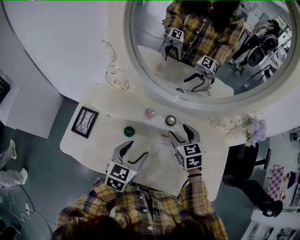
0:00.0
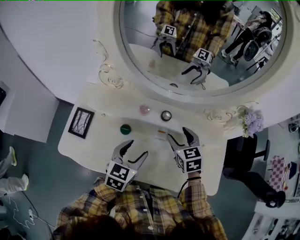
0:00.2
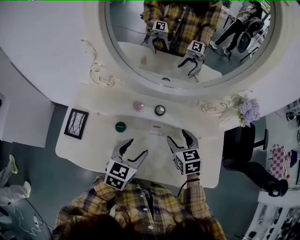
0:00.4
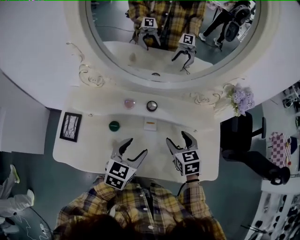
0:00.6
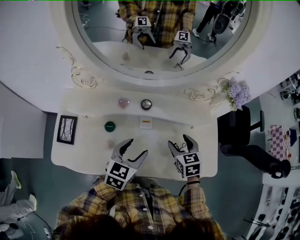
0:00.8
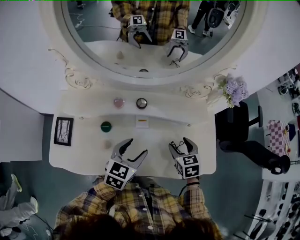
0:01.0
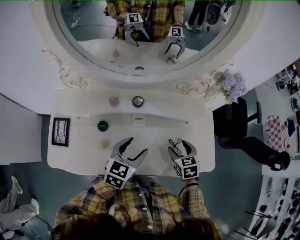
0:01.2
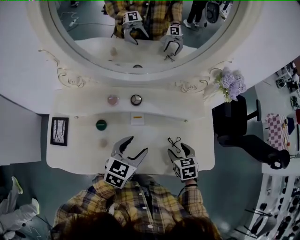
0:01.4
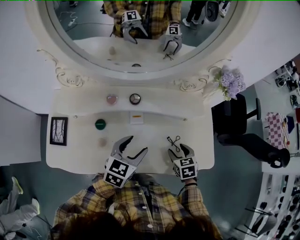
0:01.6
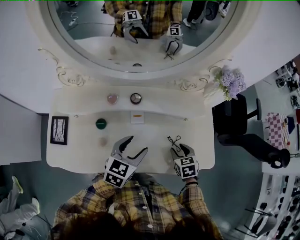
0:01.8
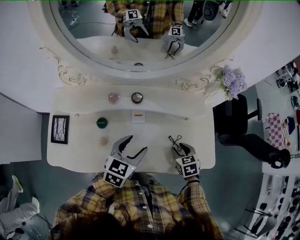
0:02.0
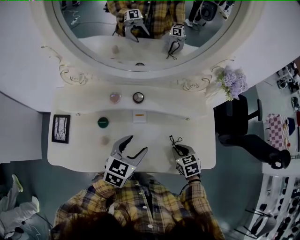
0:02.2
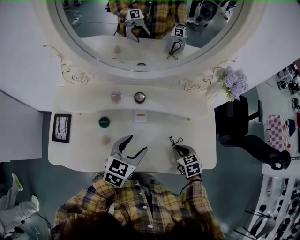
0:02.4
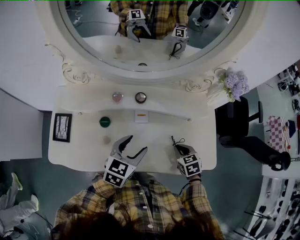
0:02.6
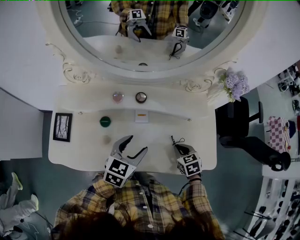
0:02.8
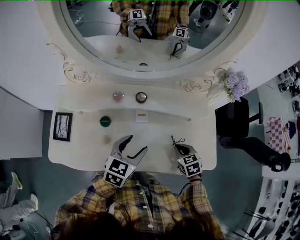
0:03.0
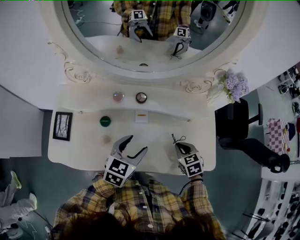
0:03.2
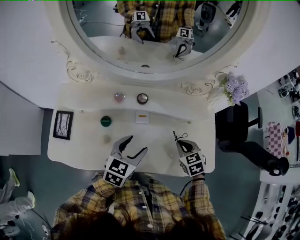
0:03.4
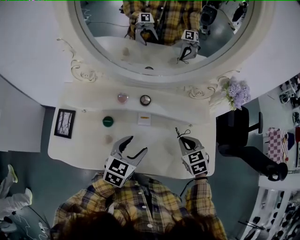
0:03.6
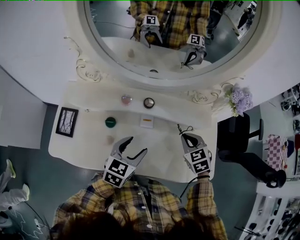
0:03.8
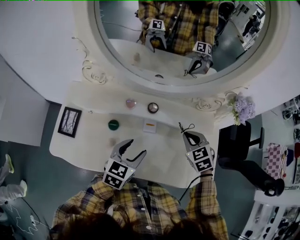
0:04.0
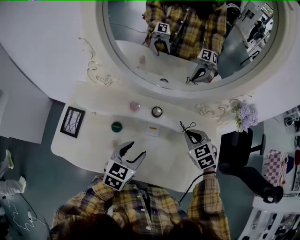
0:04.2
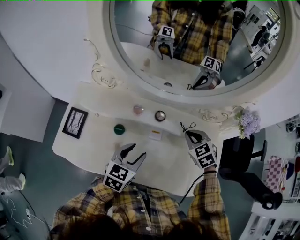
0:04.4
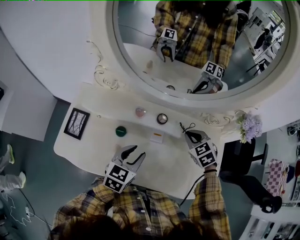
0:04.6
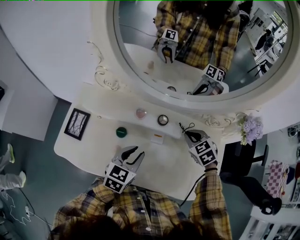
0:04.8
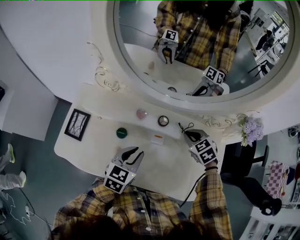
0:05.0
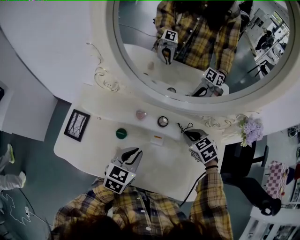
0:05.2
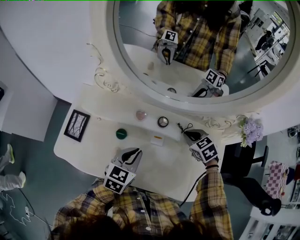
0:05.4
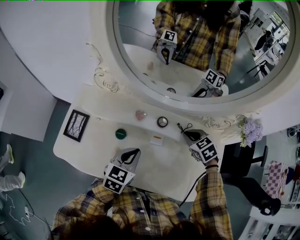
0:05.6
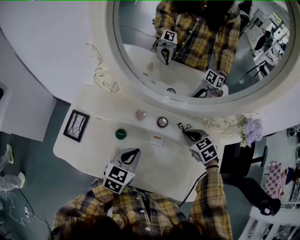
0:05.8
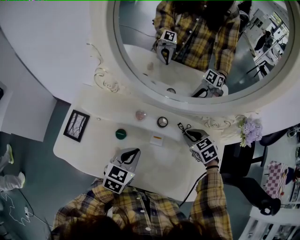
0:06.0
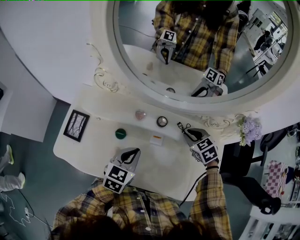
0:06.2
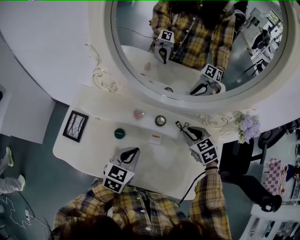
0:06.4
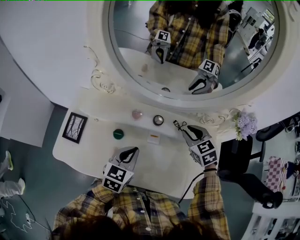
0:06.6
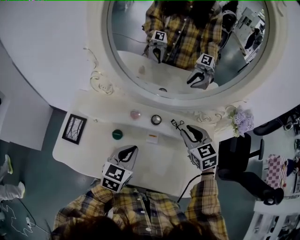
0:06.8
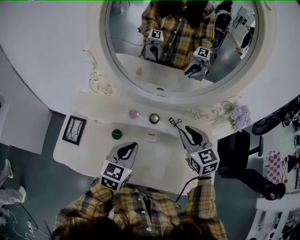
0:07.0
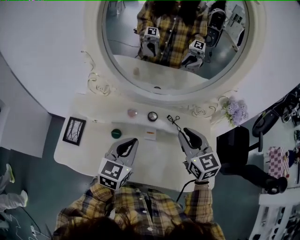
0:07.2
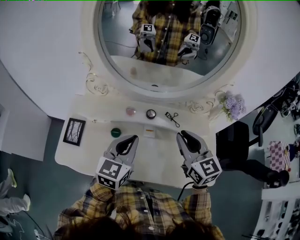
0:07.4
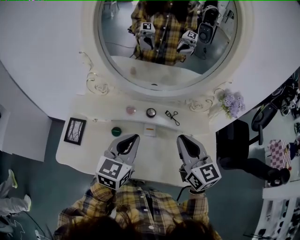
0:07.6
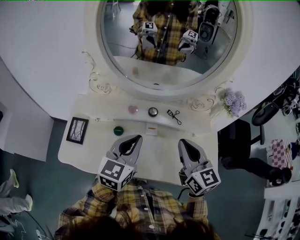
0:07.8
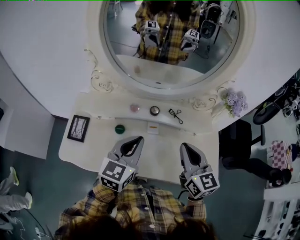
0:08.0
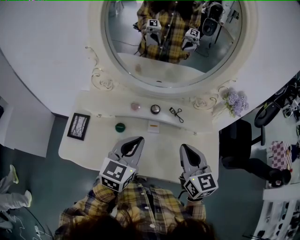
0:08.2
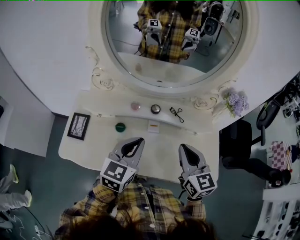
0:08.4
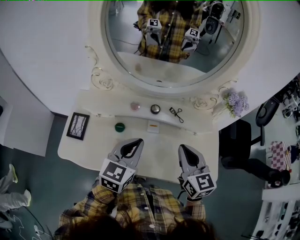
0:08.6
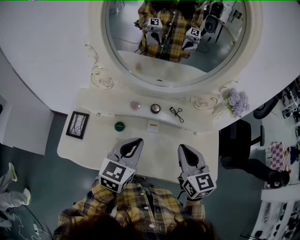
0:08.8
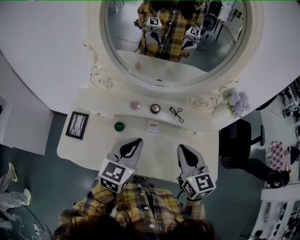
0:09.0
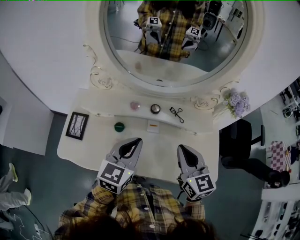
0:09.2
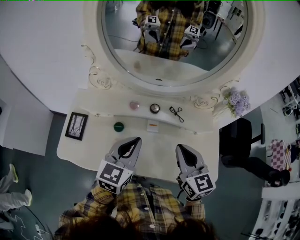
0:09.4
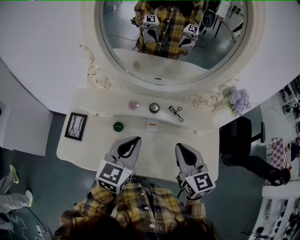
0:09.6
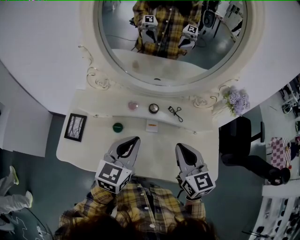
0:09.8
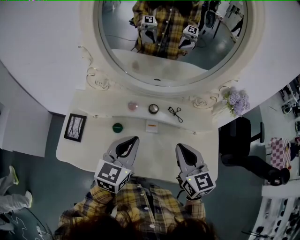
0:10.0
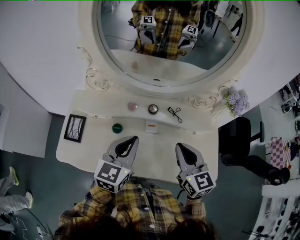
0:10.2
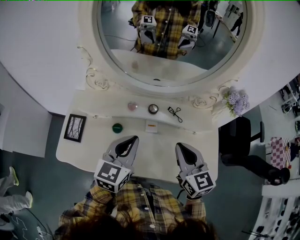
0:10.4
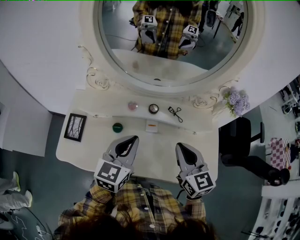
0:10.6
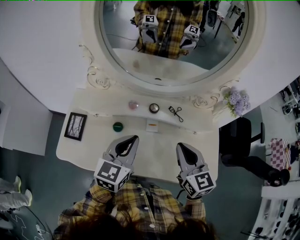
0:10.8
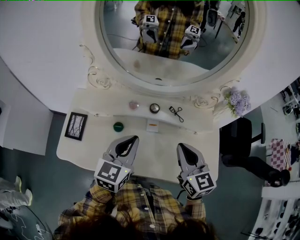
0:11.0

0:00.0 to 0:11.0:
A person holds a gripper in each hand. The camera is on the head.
0:00.0 to 0:01.6: The right gripper is displaced to the right, backward and downward by some 30 cm, and turns by approximately 30 degrees. The left gripper is displaced to the right by about 10 cm, and swivels some 20 degrees.
0:01.6 to 0:03.2: The right gripper closes up.
0:03.2 to 0:04.8: The right gripper goes some 20 cm forward, to the left and upward, and changes its angle by about 30 degrees, while the left gripper moves to the left, approximately 5 cm, and closes up.
0:04.8 to 0:06.2: The left gripper closes its fingers.
0:06.2 to 0:07.8: The right gripper shifts roughly 25 cm upward and backward, and tilts its fingers some 50 degrees upward, while the left gripper goes roughly 15 cm upward.
0:07.8 to 0:09.4: The grippers stay close to where they were, moving slightly.
0:09.4 to 0:11.0: Both grippers stay put.

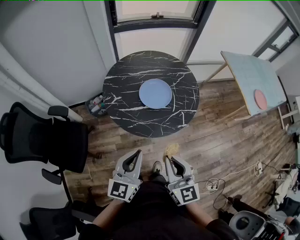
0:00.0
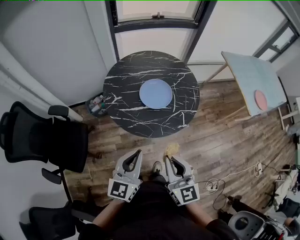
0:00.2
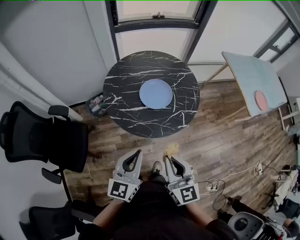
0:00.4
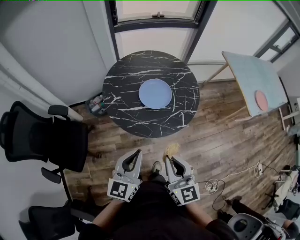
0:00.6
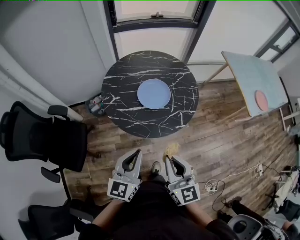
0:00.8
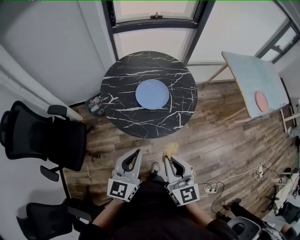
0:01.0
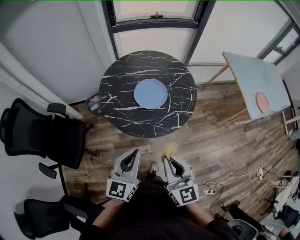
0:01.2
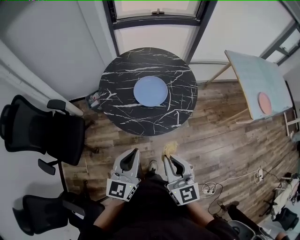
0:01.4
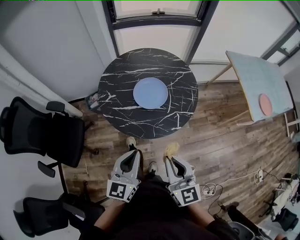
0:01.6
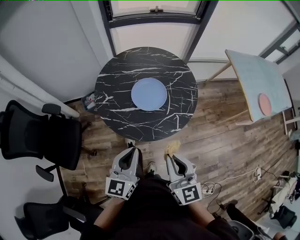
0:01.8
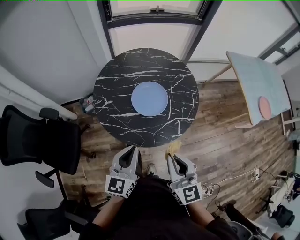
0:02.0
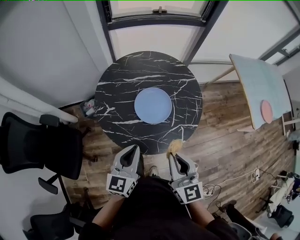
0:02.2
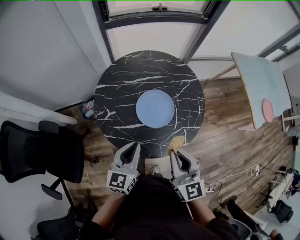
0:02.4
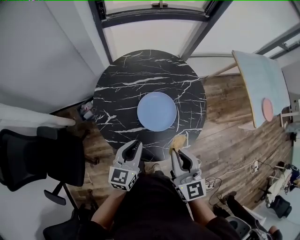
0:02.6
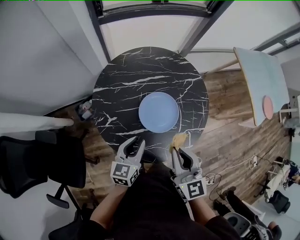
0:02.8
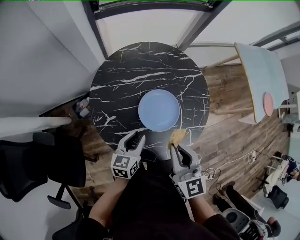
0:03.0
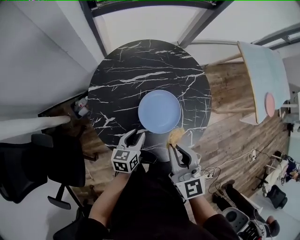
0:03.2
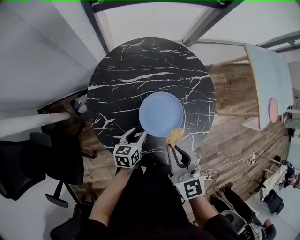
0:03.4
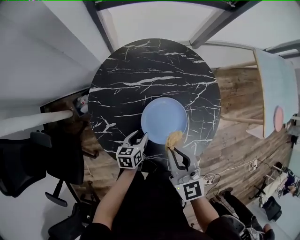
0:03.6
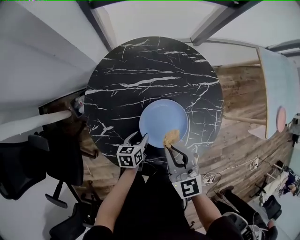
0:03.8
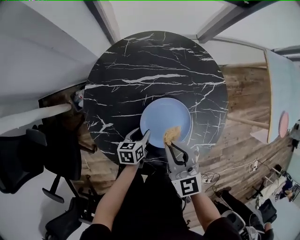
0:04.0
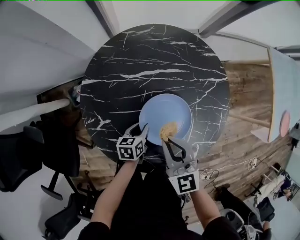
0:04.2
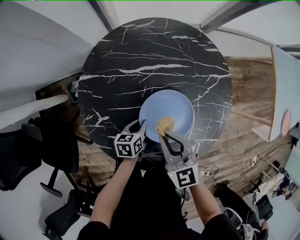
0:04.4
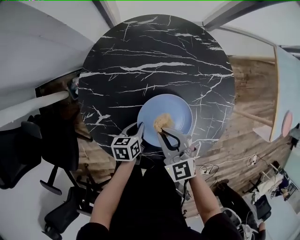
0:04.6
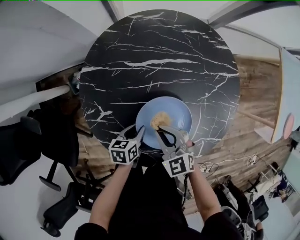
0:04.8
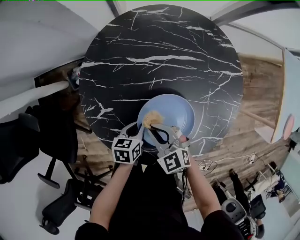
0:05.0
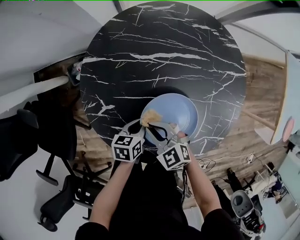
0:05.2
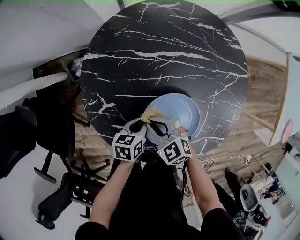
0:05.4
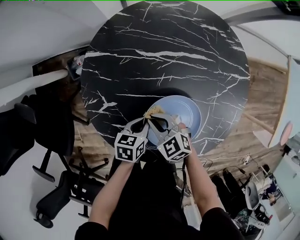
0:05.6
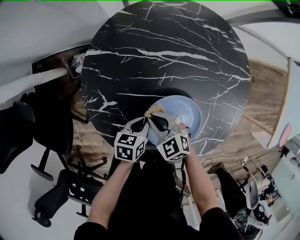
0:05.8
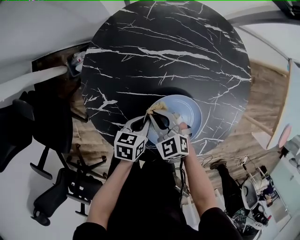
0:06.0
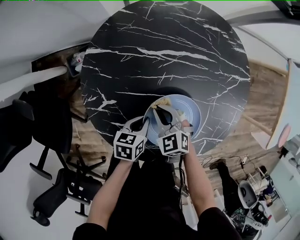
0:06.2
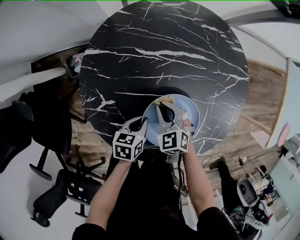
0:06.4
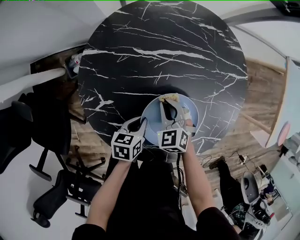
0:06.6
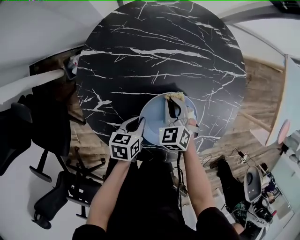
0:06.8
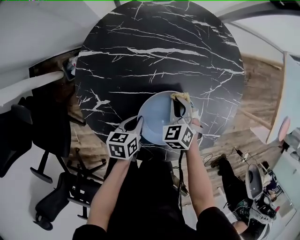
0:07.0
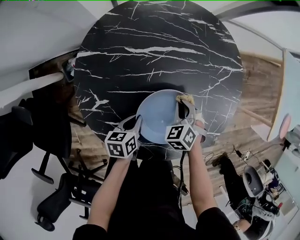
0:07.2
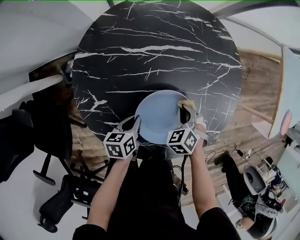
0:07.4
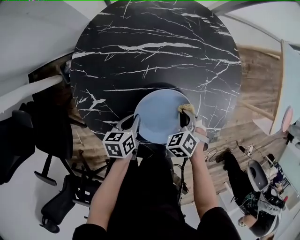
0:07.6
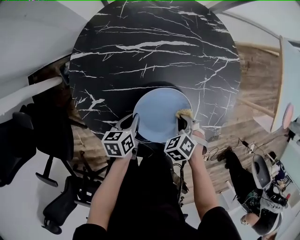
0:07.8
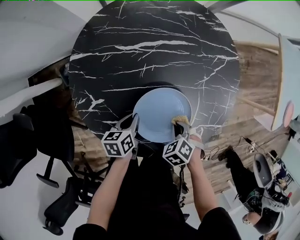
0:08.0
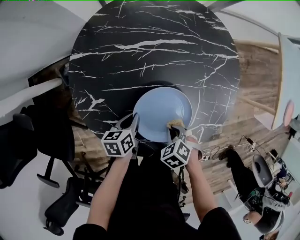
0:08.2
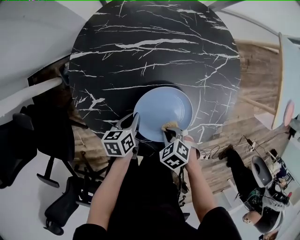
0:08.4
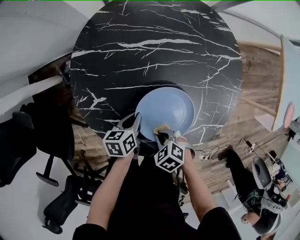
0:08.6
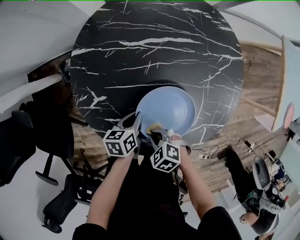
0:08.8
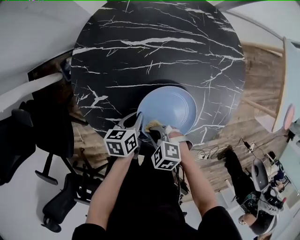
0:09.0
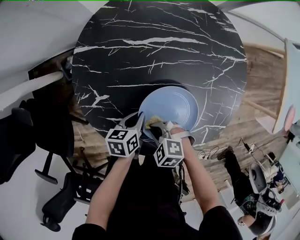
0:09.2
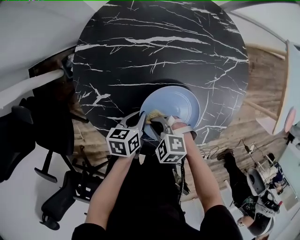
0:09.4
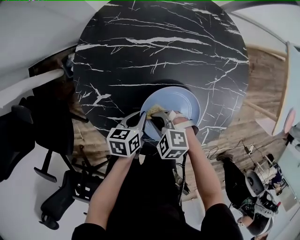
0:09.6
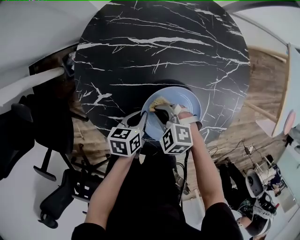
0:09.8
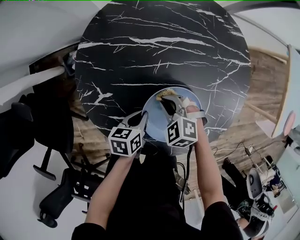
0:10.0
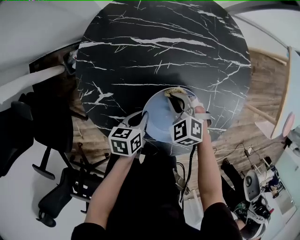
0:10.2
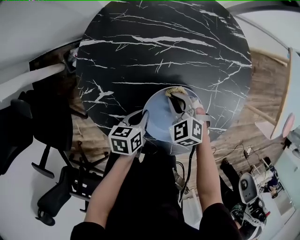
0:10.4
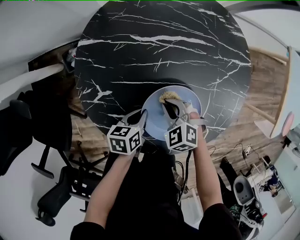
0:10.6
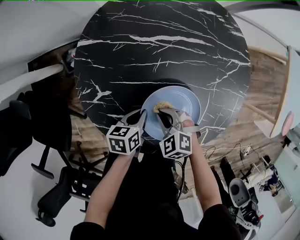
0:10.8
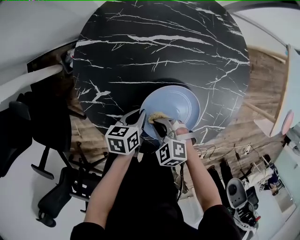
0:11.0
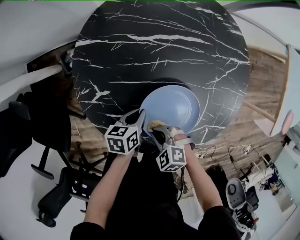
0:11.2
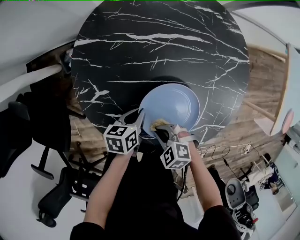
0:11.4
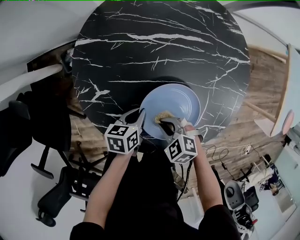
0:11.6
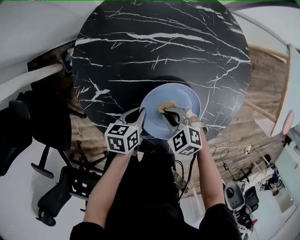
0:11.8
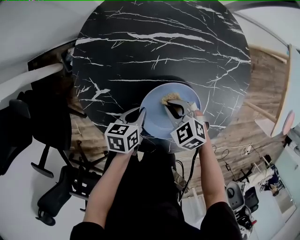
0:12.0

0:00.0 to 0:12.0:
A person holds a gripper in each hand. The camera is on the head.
0:00.0 to 0:01.6: The grippers both shift to the right by some 10 cm.
0:01.6 to 0:03.0: The left gripper heads forward and downward, covering some 35 cm, rotates roughly 30 degrees, and opens up. The right gripper moves forward, about 30 cm.
0:03.0 to 0:04.4: The left gripper heads downward, covering roughly 20 cm, and turns by some 30 degrees; the right gripper travels downward and forward by about 20 cm, and changes its angle by approximately 20 degrees.
0:04.4 to 0:06.0: The right gripper goes some 20 cm downward and to the left, and swivels approximately 30 degrees.
0:06.0 to 0:07.6: The right gripper changes place by approximately 20 cm, and turns by about 40 degrees.
0:07.6 to 0:09.0: The right gripper changes place by roughly 20 cm, and changes its angle by roughly 40 degrees.
0:09.0 to 0:10.4: The right gripper shifts by some 15 cm, and swivels some 20 degrees.

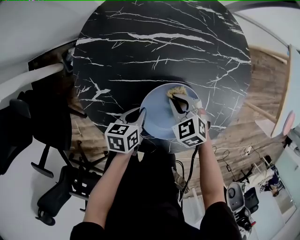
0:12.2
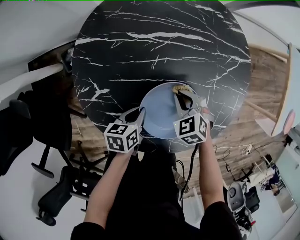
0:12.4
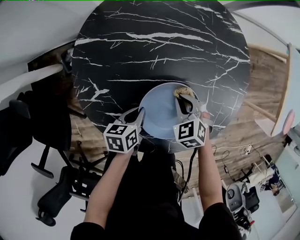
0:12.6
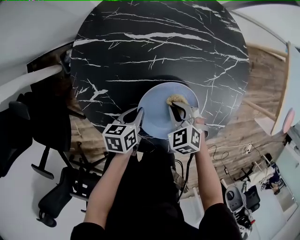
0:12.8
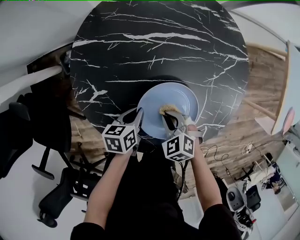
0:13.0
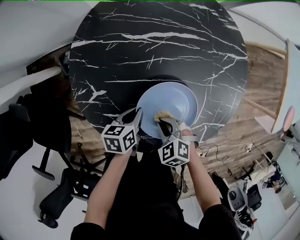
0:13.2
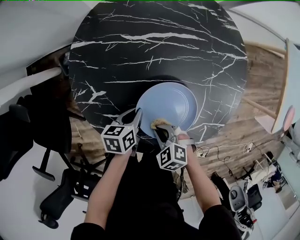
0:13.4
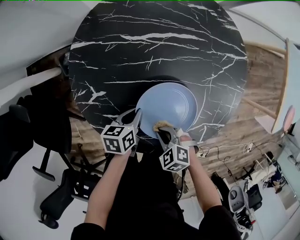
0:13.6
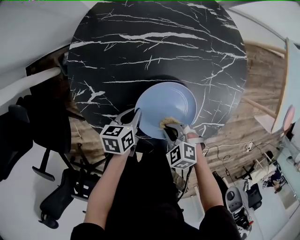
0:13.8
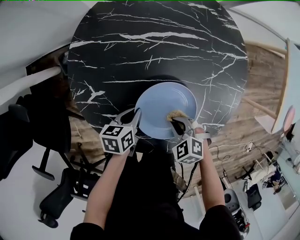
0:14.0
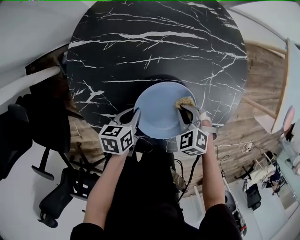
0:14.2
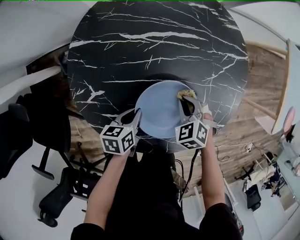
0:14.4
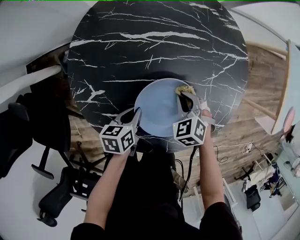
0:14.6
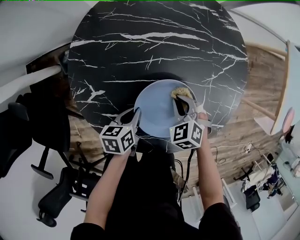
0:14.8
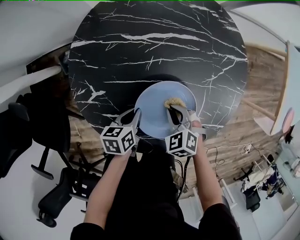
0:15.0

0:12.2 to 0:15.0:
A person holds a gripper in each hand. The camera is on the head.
0:12.2 to 0:13.6: The right gripper changes place by some 15 cm.
